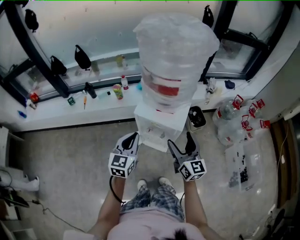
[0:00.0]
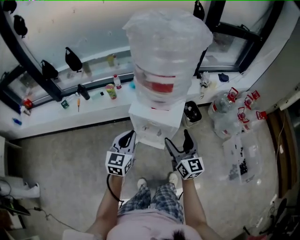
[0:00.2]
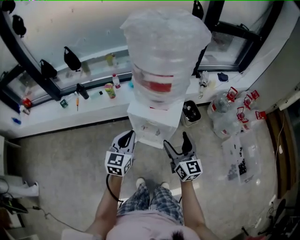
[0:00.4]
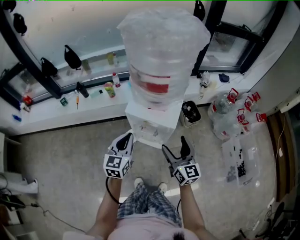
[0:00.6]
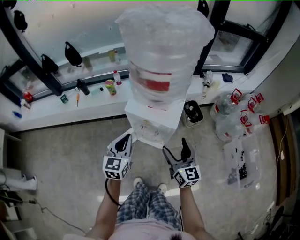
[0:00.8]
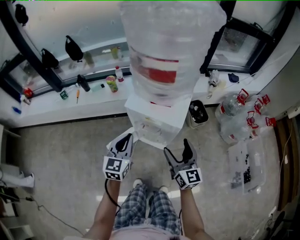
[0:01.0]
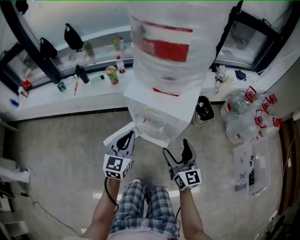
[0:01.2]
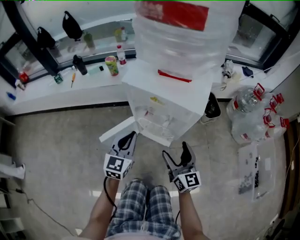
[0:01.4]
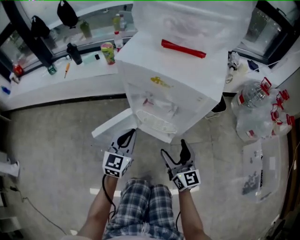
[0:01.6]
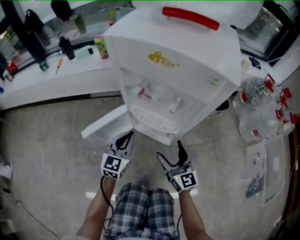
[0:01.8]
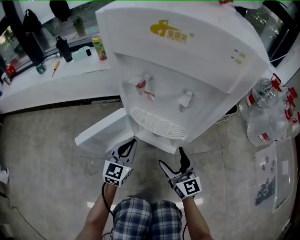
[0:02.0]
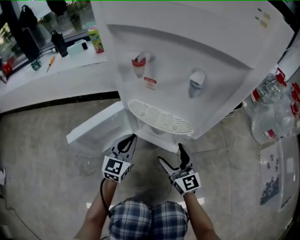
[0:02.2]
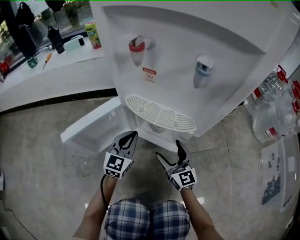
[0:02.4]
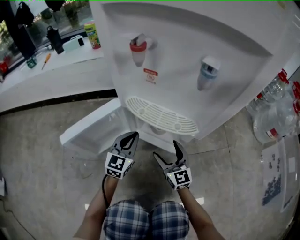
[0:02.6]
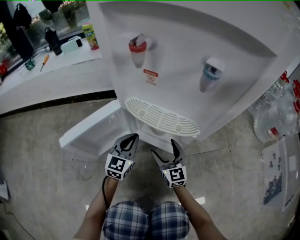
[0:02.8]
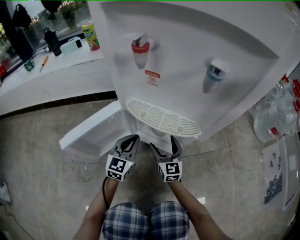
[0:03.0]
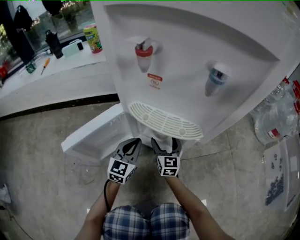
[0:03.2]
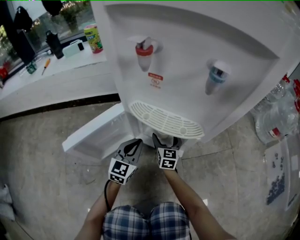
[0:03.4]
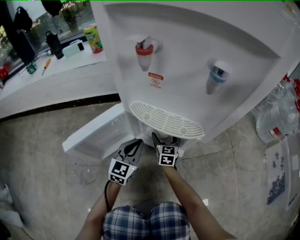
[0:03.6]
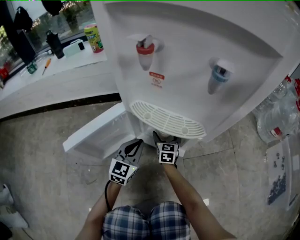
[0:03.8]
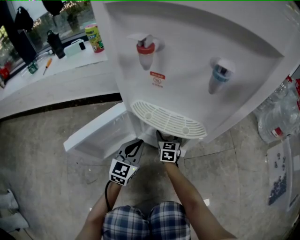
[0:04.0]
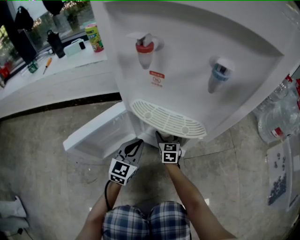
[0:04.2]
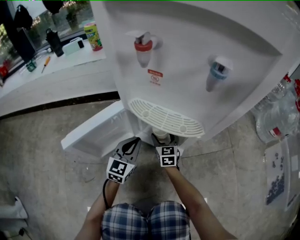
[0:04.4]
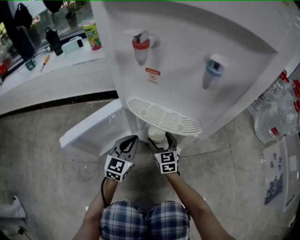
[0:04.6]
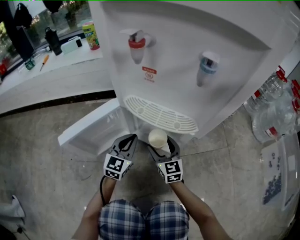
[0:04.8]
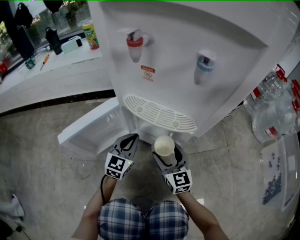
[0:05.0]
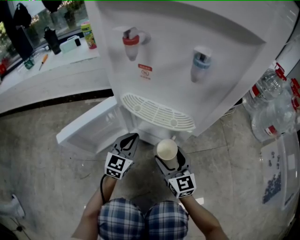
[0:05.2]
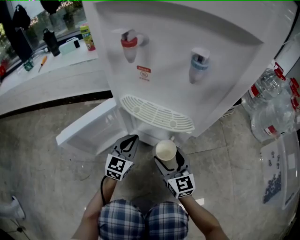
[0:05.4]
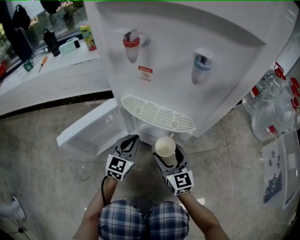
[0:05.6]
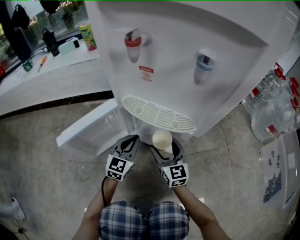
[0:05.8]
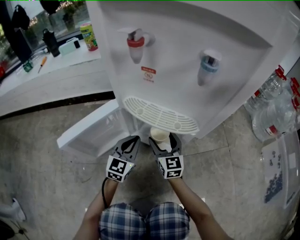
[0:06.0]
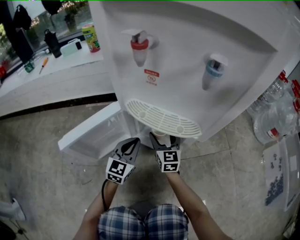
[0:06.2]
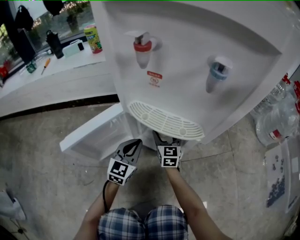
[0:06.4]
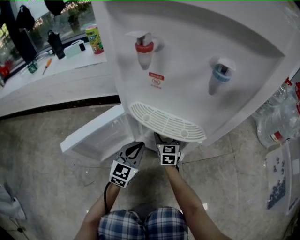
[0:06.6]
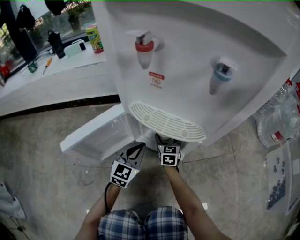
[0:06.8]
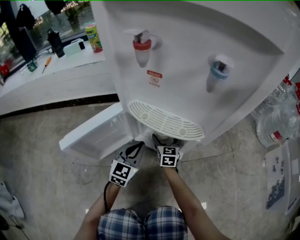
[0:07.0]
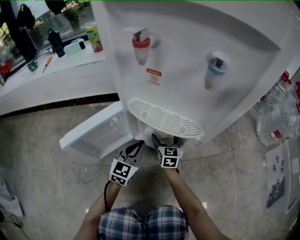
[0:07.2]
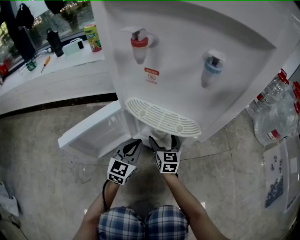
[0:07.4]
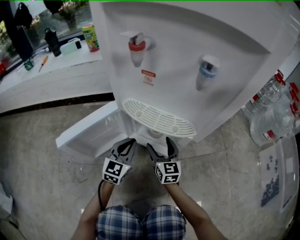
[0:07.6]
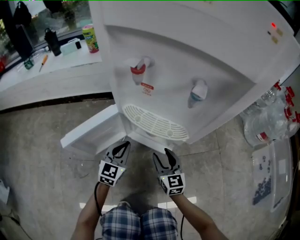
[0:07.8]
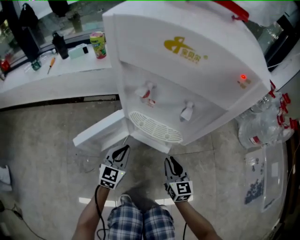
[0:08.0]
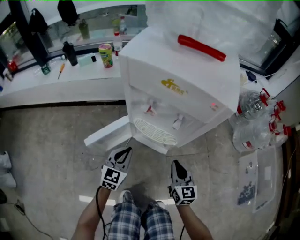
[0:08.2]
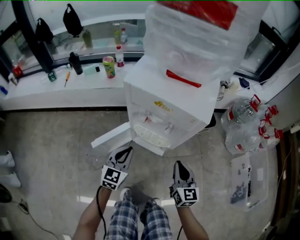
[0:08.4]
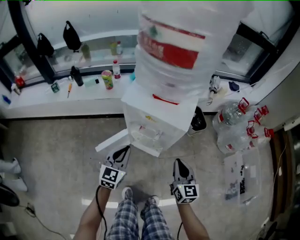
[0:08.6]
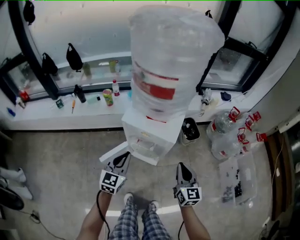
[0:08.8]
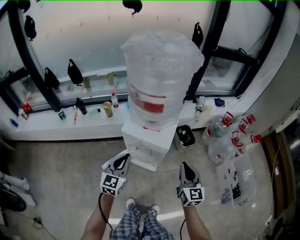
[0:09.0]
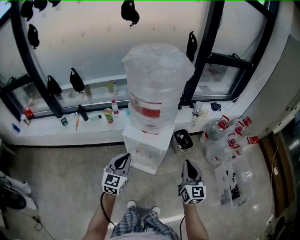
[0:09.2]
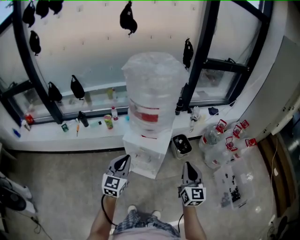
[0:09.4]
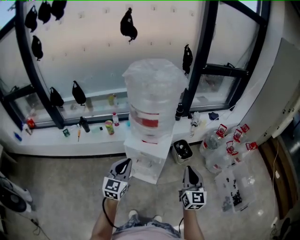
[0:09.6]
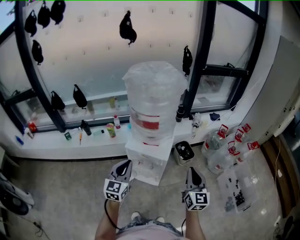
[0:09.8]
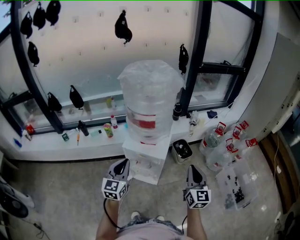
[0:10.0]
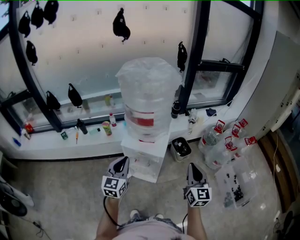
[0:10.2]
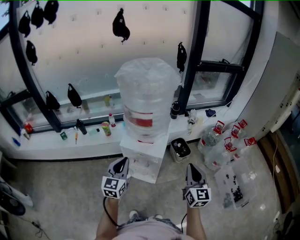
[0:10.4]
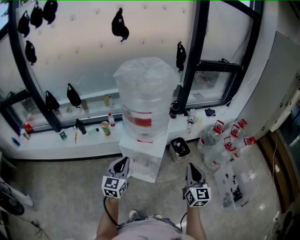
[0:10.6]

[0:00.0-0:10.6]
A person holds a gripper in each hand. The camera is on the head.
0:00.0 to 0:01.6: Both grippers move downward, roughly 40 cm.
0:01.6 to 0:03.0: The two grippers go about 35 cm downward.
0:03.0 to 0:04.6: The right gripper goes forward and returns, some 10 cm each way.
0:04.6 to 0:06.0: The right gripper is displaced upward by some 5 cm, and reaches approximately 10 cm backward, then returns.
0:06.0 to 0:07.6: The right gripper travels downward and back again, some 10 cm each way.
0:07.6 to 0:09.0: The grippers both shift upward by approximately 70 cm. The right gripper closes up.
0:09.0 to 0:10.6: The right gripper moves upward and to the right, approximately 10 cm. The left gripper goes approximately 10 cm upward.

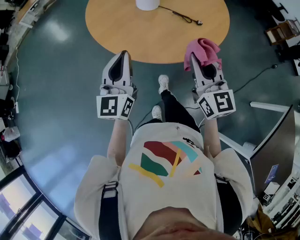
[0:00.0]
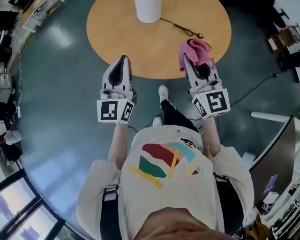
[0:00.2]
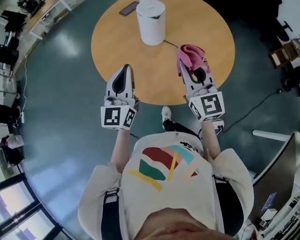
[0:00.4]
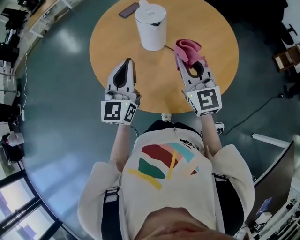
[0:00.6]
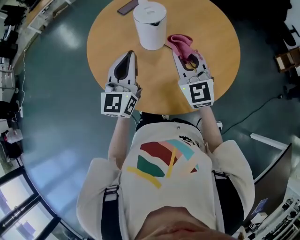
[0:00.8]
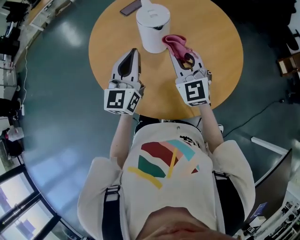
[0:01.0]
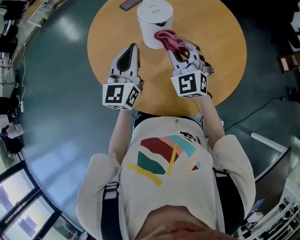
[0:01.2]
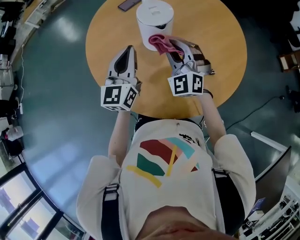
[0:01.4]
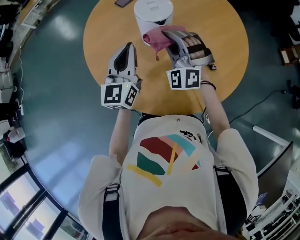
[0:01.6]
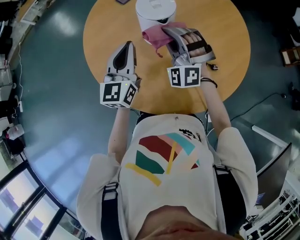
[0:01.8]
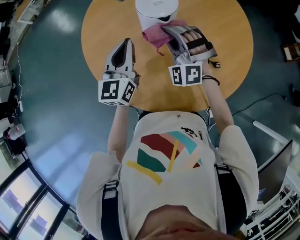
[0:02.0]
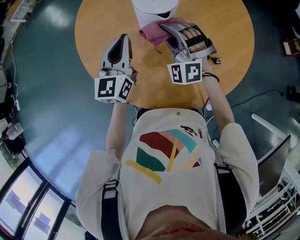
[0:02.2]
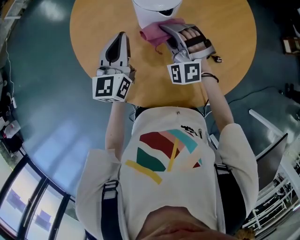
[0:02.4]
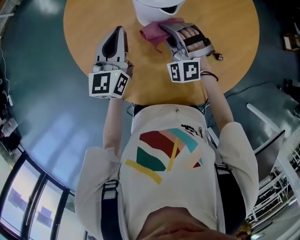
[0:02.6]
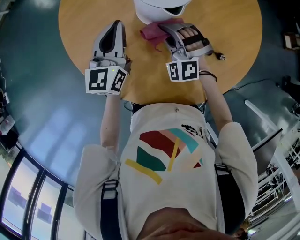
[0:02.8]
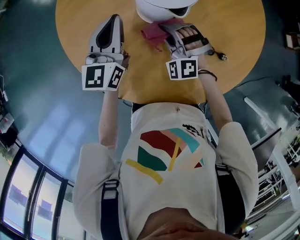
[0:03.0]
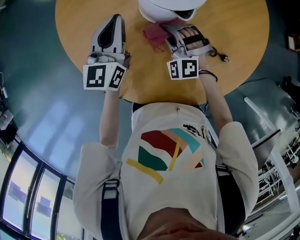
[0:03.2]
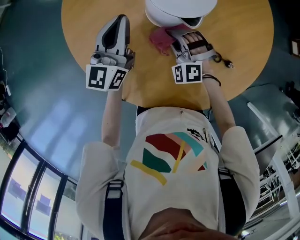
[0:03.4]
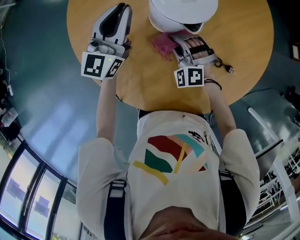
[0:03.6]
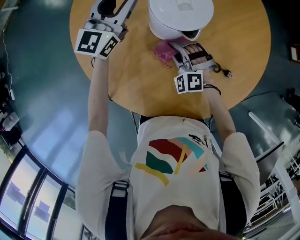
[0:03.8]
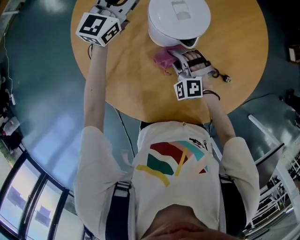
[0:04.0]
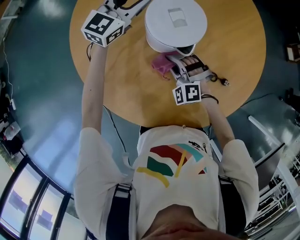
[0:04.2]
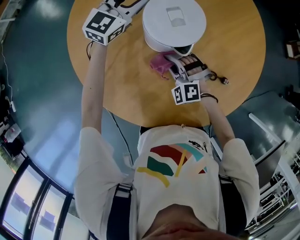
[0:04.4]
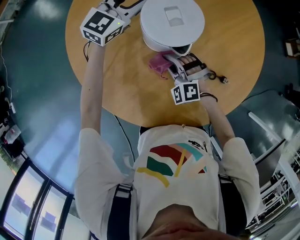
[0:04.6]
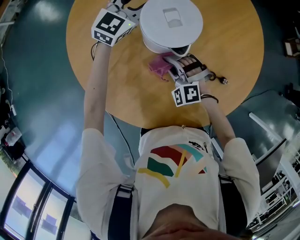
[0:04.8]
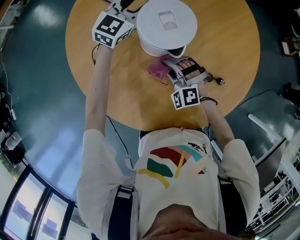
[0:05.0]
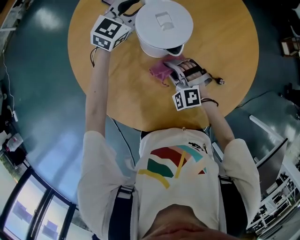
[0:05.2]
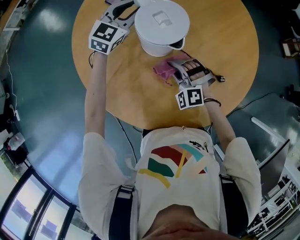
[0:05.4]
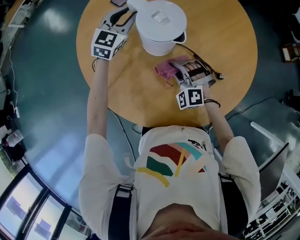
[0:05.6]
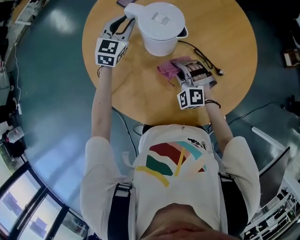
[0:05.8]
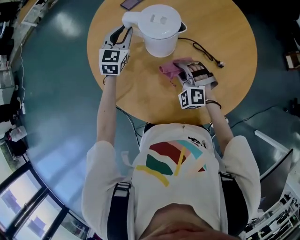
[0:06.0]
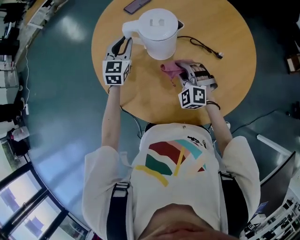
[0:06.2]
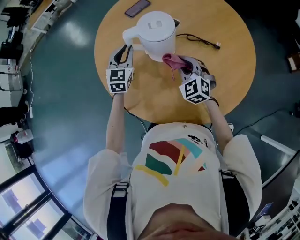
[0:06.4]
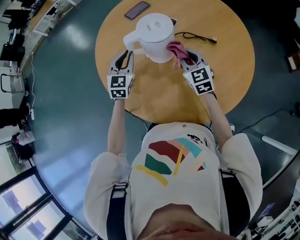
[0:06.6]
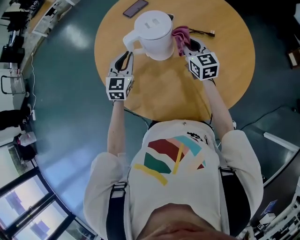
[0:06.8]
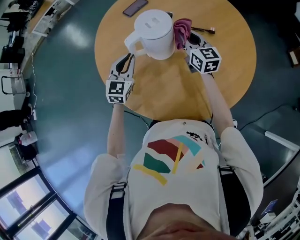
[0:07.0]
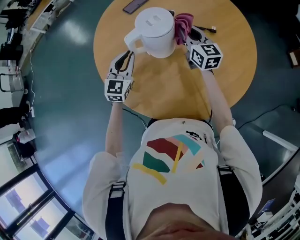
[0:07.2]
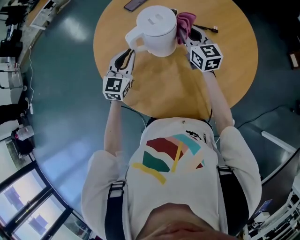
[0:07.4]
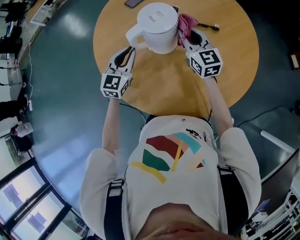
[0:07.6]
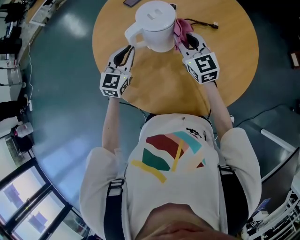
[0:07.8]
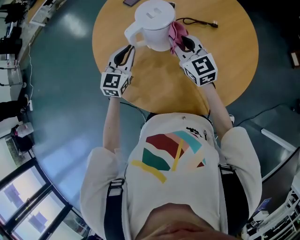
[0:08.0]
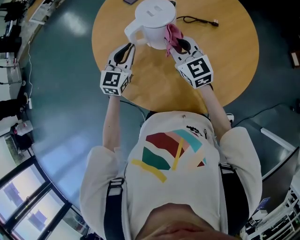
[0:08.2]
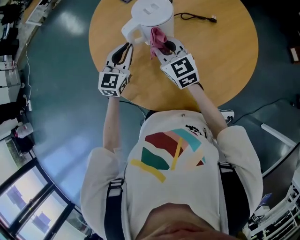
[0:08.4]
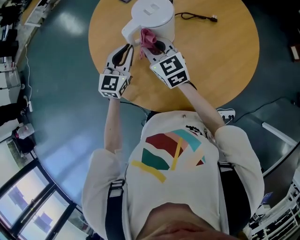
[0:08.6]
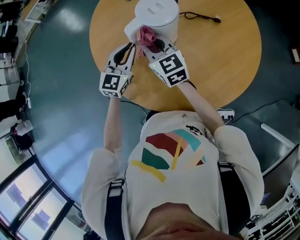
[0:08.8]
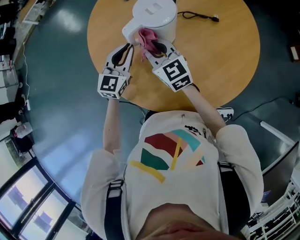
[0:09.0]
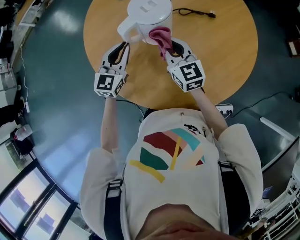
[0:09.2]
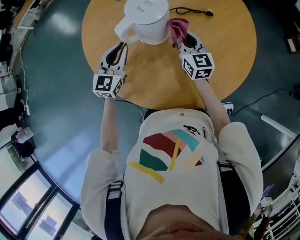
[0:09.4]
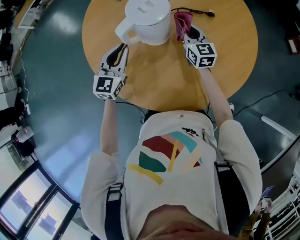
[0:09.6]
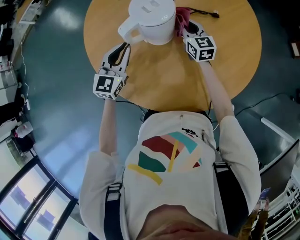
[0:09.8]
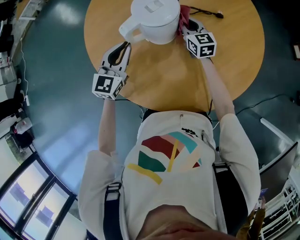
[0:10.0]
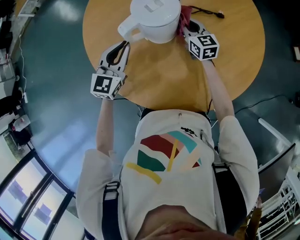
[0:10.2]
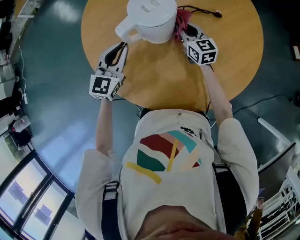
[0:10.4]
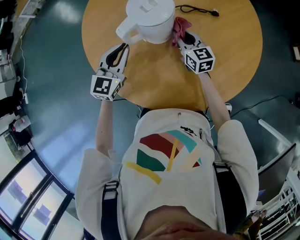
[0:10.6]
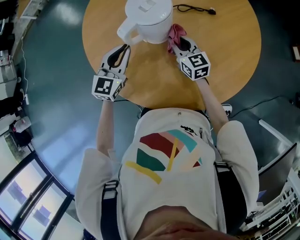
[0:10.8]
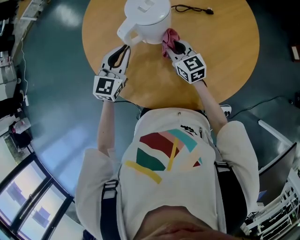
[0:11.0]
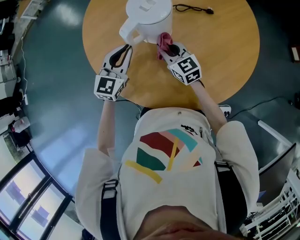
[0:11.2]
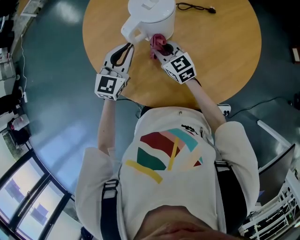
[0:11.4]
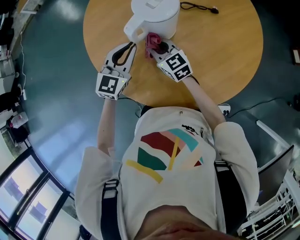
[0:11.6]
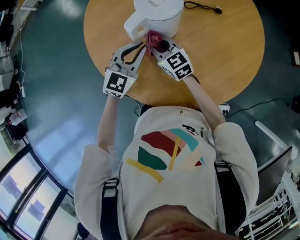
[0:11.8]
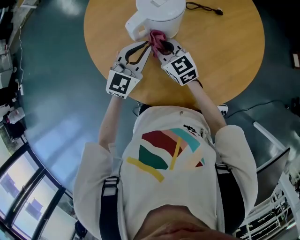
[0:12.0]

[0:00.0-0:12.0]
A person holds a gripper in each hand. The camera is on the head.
0:00.0 to 0:01.6: The two grippers go some 40 cm forward. The right gripper rolls counterclockwise, seen from behind, by roughly 70 degrees.
0:01.6 to 0:03.0: The left gripper travels forward and downward by approximately 15 cm; the right gripper is displaced downward by about 20 cm, and swivels roughly 20 degrees.
0:03.0 to 0:04.4: The left gripper moves forward, about 20 cm, swivels about 40 degrees, and opens up.
0:04.4 to 0:06.0: The right gripper travels upward and backward by some 10 cm; the left gripper is displaced backward and to the left by some 15 cm, and turns by about 30 degrees.
0:06.0 to 0:07.6: The right gripper is displaced upward and forward by about 15 cm, and rolls clockwise, seen from behind, by some 60 degrees; the left gripper shifts about 15 cm backward.
0:07.6 to 0:09.0: The right gripper travels to the left and backward by some 15 cm.
0:09.0 to 0:10.4: The right gripper shifts roughly 20 cm to the right, forward and downward.
0:10.4 to 0:12.0: The left gripper moves to the right, some 5 cm; the right gripper heads to the left and backward, covering approximately 15 cm, and swivels about 20 degrees.

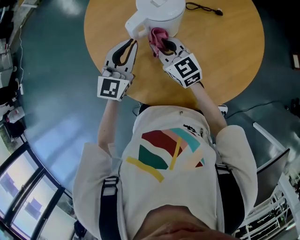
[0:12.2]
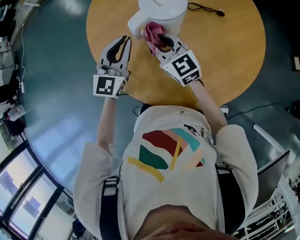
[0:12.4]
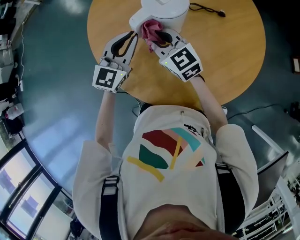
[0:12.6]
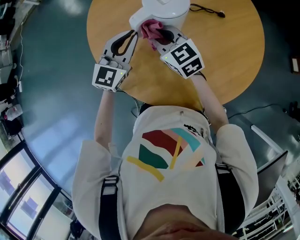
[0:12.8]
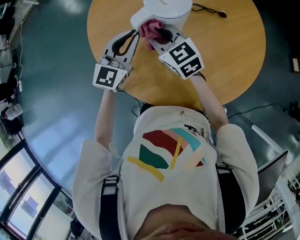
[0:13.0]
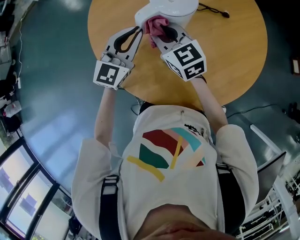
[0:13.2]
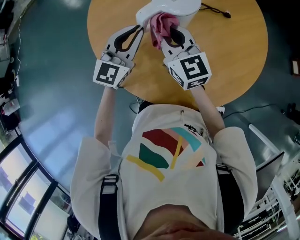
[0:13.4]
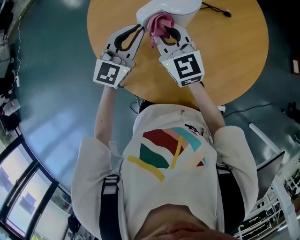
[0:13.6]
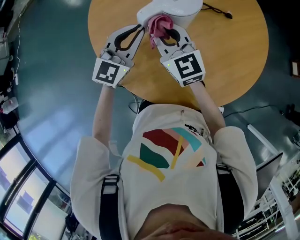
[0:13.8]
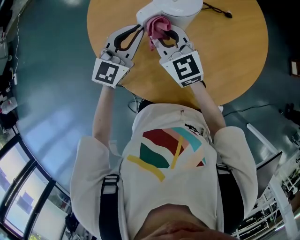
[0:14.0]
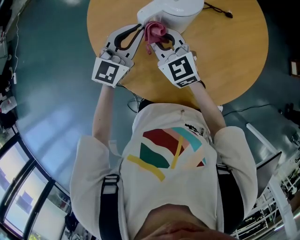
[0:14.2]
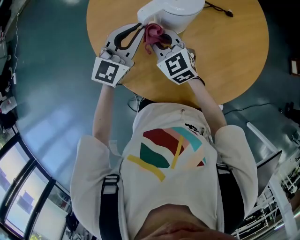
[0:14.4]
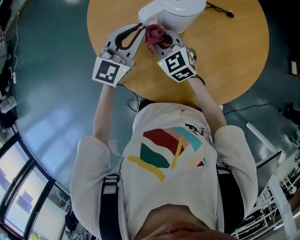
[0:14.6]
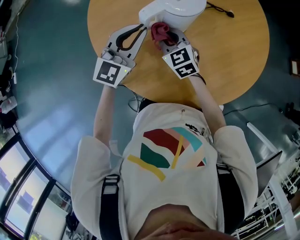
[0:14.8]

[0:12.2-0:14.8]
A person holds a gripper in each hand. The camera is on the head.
0:12.2 to 0:13.4: The right gripper shifts approximately 10 cm upward.
0:13.4 to 0:14.8: The right gripper moves downward, some 15 cm, and swivels approximately 20 degrees.
